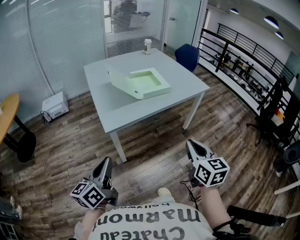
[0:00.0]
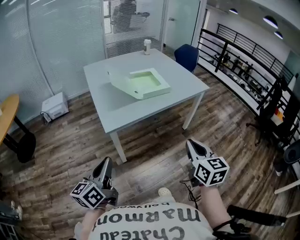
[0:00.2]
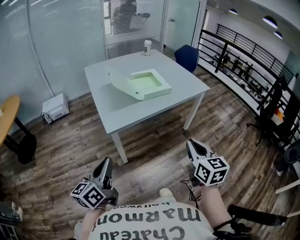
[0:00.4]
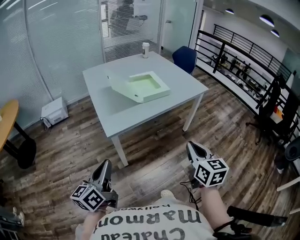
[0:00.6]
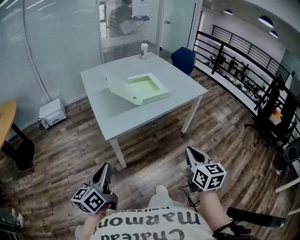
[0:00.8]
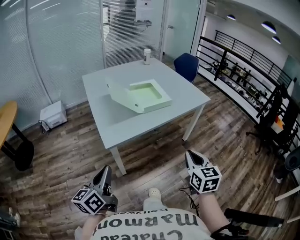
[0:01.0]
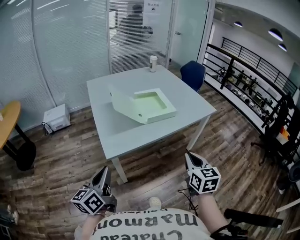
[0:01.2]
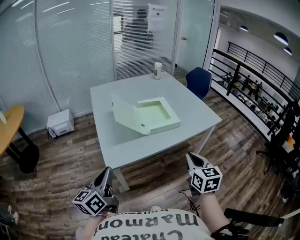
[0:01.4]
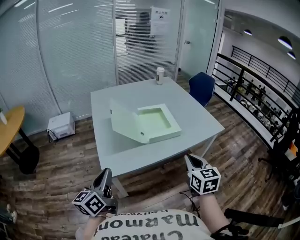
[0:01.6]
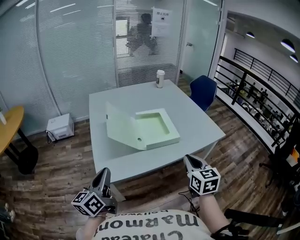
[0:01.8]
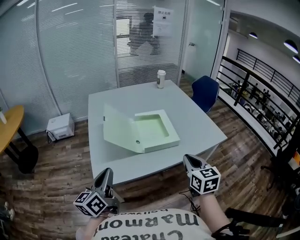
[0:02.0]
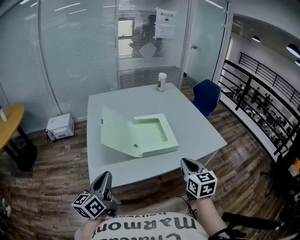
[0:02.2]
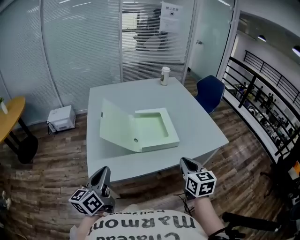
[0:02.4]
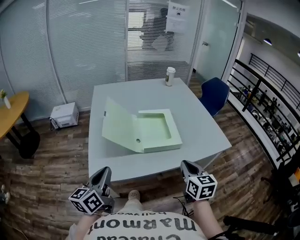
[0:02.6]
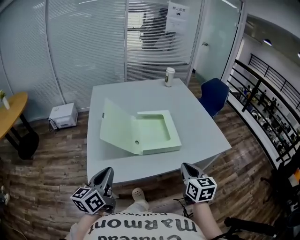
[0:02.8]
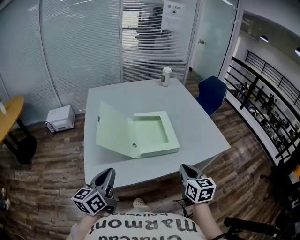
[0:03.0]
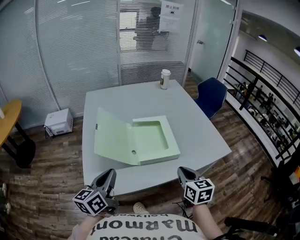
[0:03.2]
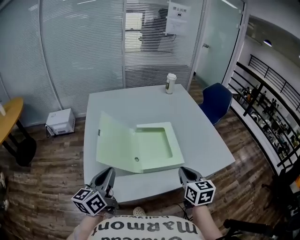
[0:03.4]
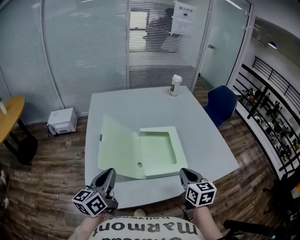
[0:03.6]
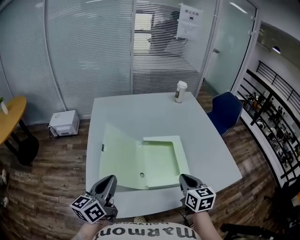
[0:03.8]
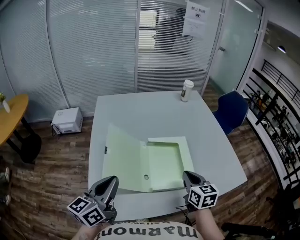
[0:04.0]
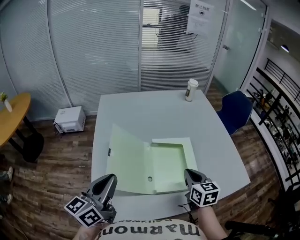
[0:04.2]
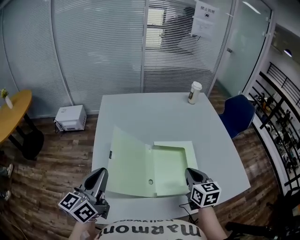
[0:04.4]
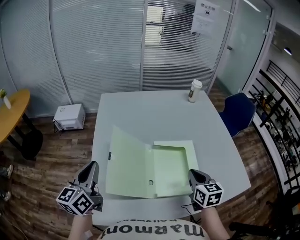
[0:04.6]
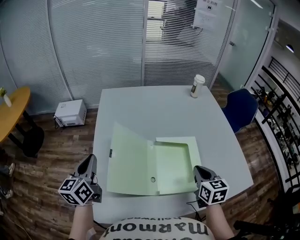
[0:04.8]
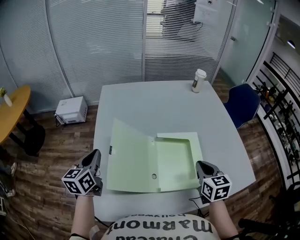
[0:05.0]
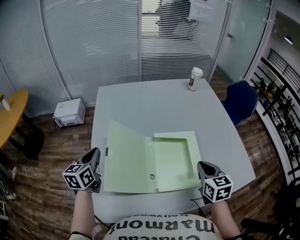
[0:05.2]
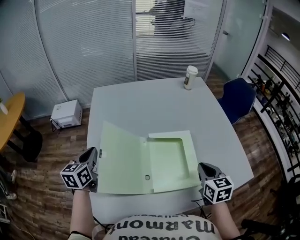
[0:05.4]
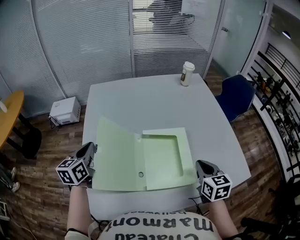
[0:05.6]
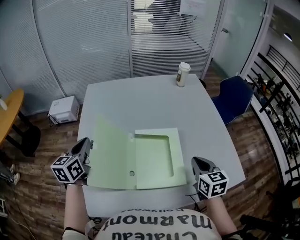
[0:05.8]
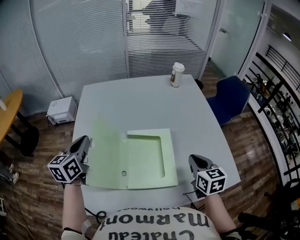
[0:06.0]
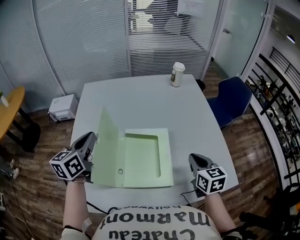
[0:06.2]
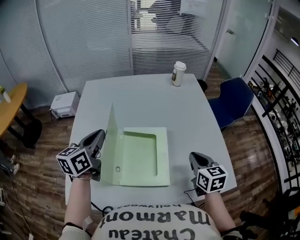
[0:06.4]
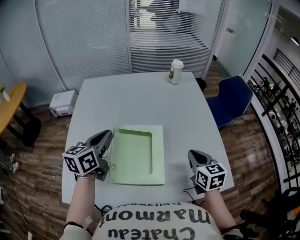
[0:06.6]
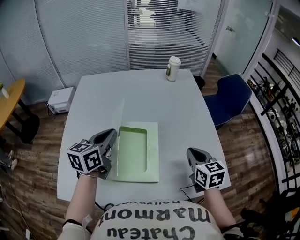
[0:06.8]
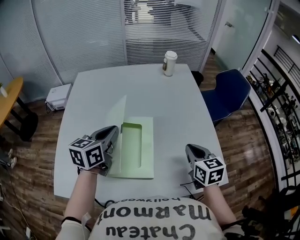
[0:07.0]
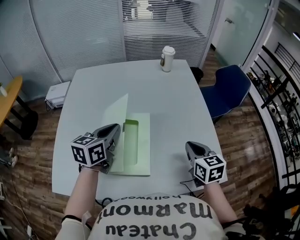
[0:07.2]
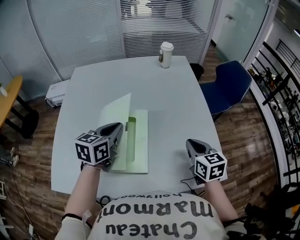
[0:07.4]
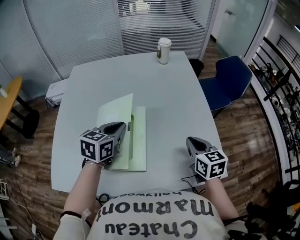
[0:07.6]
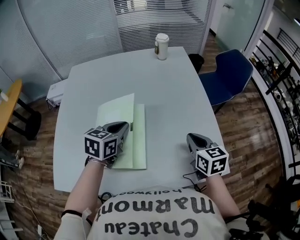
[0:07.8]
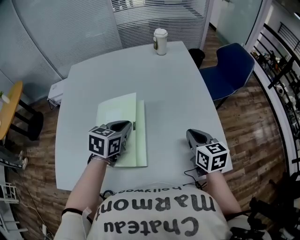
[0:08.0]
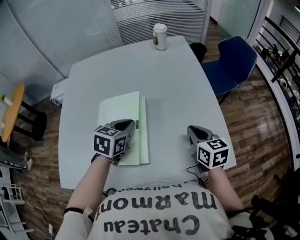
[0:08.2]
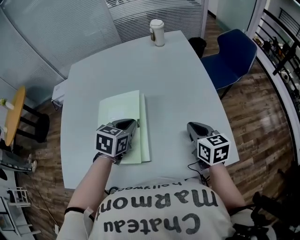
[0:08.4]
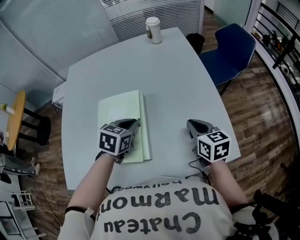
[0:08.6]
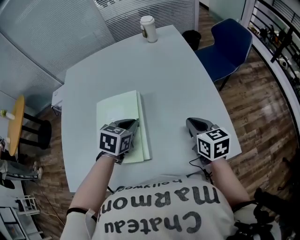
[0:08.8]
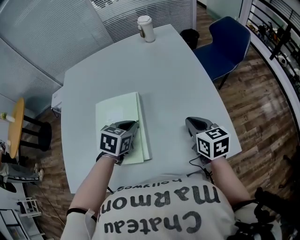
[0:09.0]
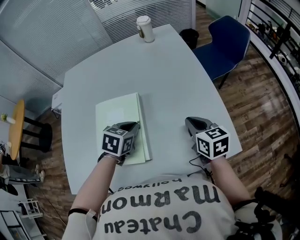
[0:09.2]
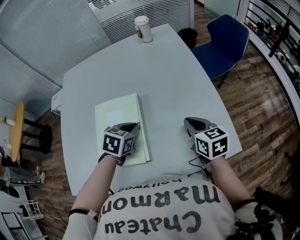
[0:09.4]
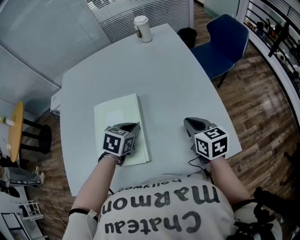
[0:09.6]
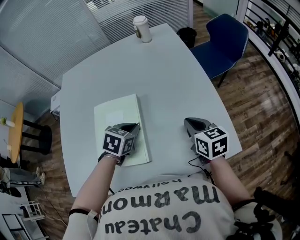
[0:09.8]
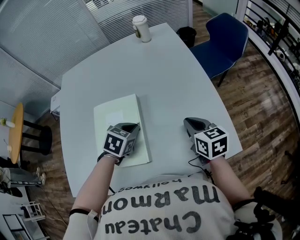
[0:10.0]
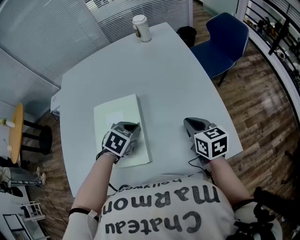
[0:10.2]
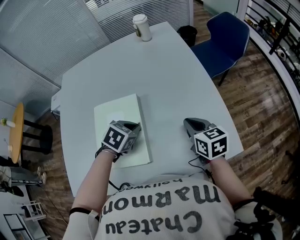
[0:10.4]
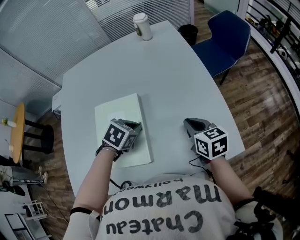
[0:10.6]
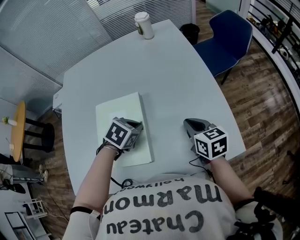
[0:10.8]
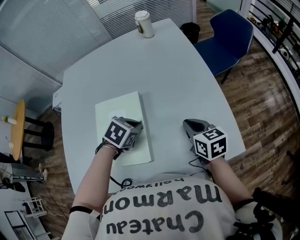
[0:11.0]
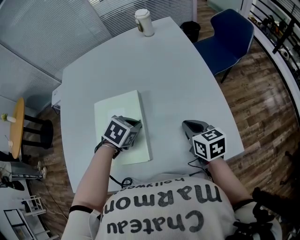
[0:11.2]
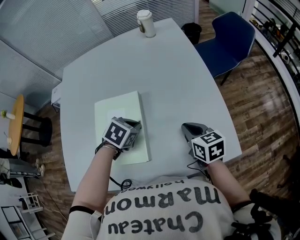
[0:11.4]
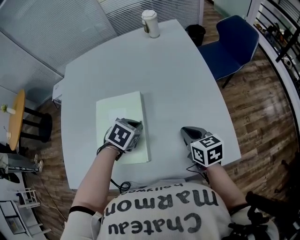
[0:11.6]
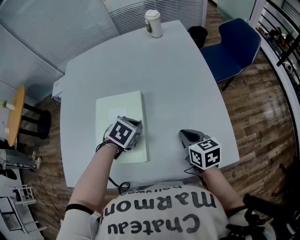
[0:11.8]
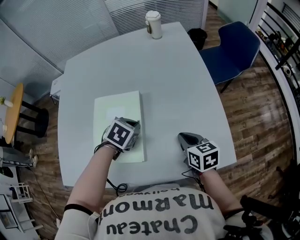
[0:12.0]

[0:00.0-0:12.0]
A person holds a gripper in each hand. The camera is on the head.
0.0 to 1.6 s: Both grippers travel together forward, about 25 cm.
1.6 to 3.0 s: The right gripper is displaced forward and downward by some 15 cm, while the left gripper is displaced forward and to the right by about 15 cm.
3.0 to 4.4 s: The right gripper travels forward by approximately 25 cm. The left gripper is displaced forward, to the left and upward by approximately 20 cm.
4.4 to 6.0 s: The left gripper shifts approximately 15 cm forward and to the right. The right gripper shifts some 15 cm to the right.
6.0 to 7.6 s: The right gripper is displaced to the right by roughly 15 cm, while the left gripper moves to the right, some 30 cm, and changes its angle by approximately 20 degrees.
7.6 to 9.0 s: The left gripper moves downward and to the right, some 10 cm, and swivels roughly 20 degrees.
9.0 to 10.4 s: The grippers stay close to where they were, moving slightly.
10.4 to 12.0 s: The right gripper changes place by about 5 cm.

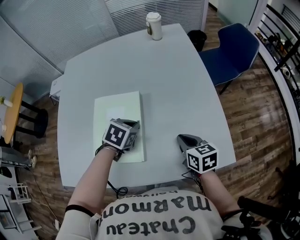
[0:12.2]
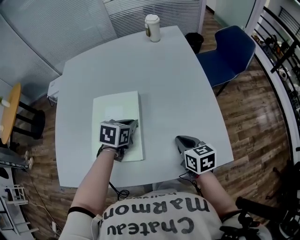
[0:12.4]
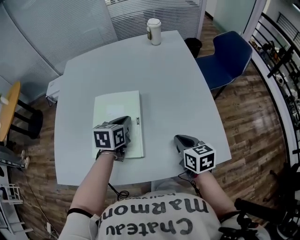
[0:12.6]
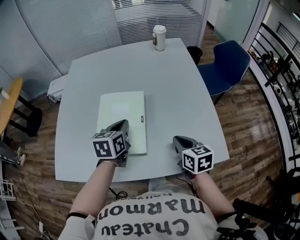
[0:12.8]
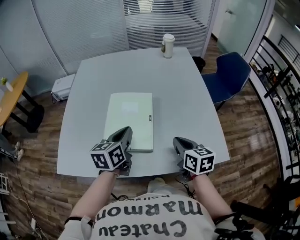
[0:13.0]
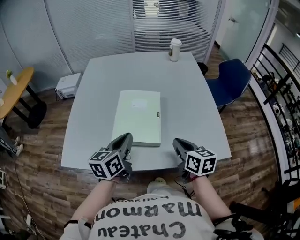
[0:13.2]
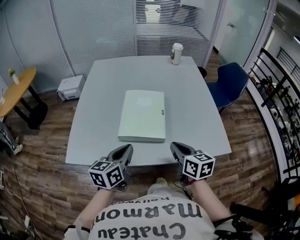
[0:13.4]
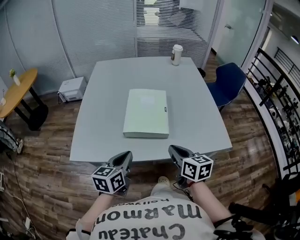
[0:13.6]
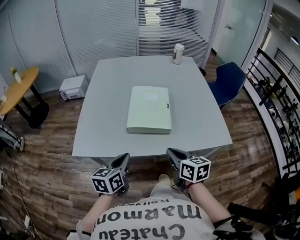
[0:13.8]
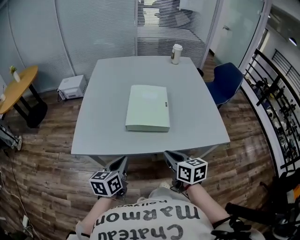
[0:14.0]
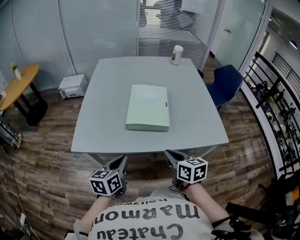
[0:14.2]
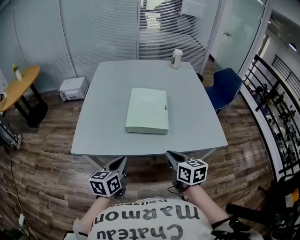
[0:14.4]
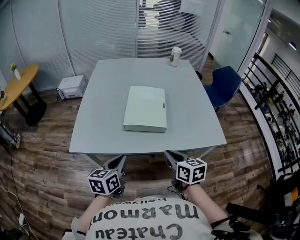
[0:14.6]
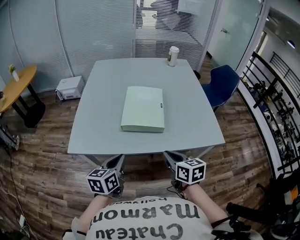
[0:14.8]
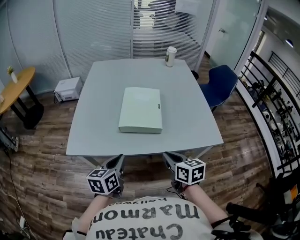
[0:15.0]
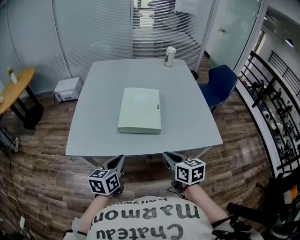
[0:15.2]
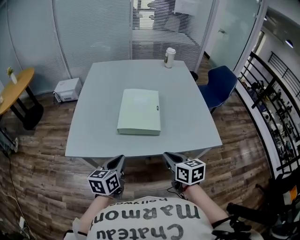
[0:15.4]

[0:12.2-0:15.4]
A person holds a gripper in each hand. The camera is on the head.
12.2 to 13.8 s: The left gripper heads backward and to the left, covering roughly 40 cm, and points its fingers about 40 degrees further upward, while the right gripper heads backward, to the left and upward, covering roughly 30 cm.
13.8 to 15.4 s: The grippers stay close to where they were, moving slightly.

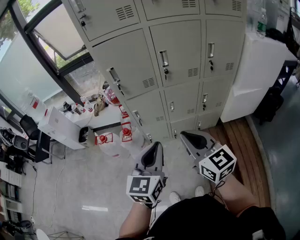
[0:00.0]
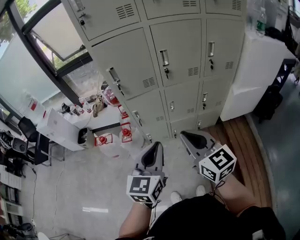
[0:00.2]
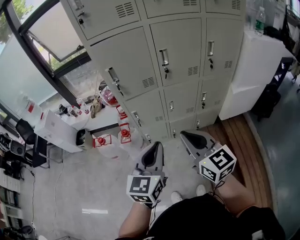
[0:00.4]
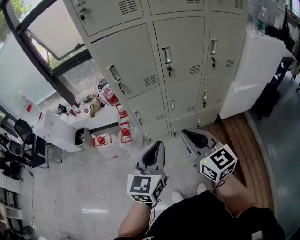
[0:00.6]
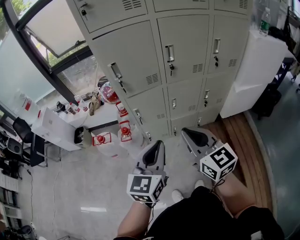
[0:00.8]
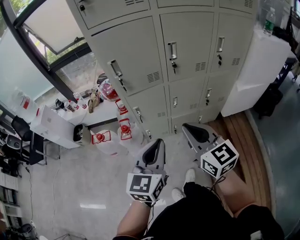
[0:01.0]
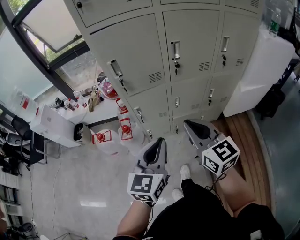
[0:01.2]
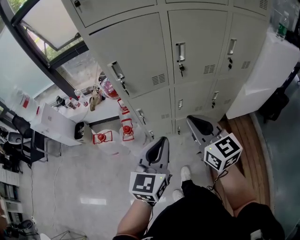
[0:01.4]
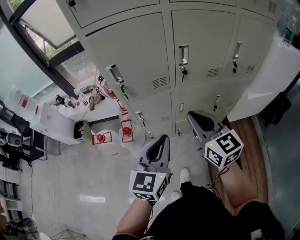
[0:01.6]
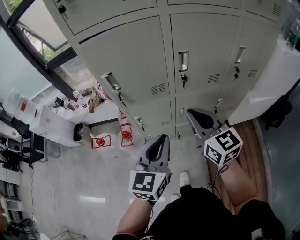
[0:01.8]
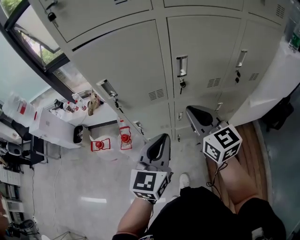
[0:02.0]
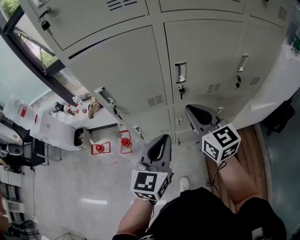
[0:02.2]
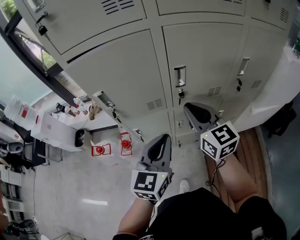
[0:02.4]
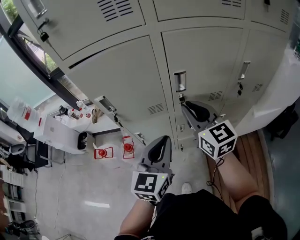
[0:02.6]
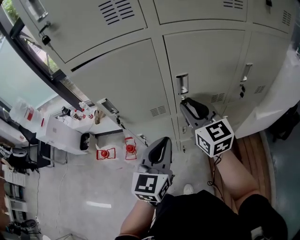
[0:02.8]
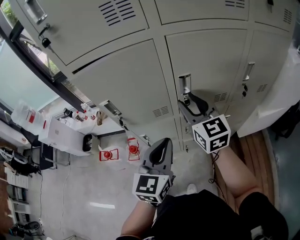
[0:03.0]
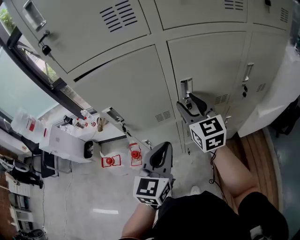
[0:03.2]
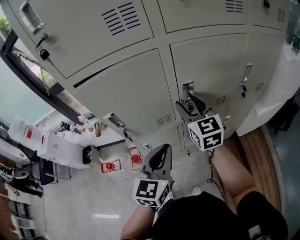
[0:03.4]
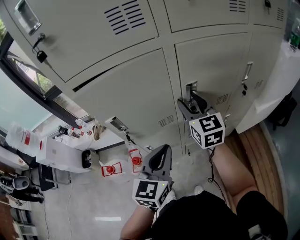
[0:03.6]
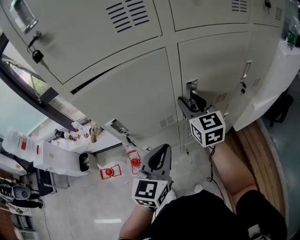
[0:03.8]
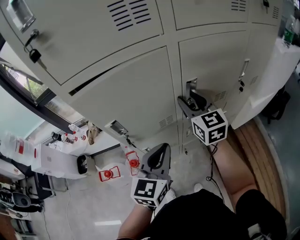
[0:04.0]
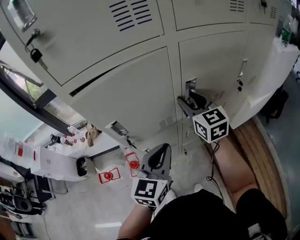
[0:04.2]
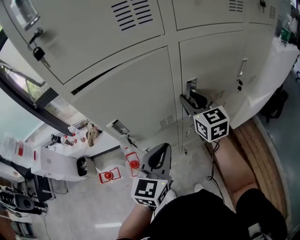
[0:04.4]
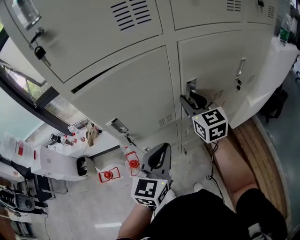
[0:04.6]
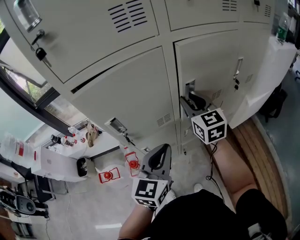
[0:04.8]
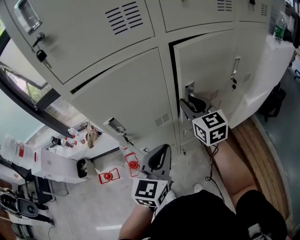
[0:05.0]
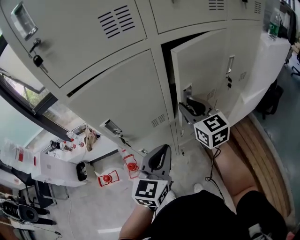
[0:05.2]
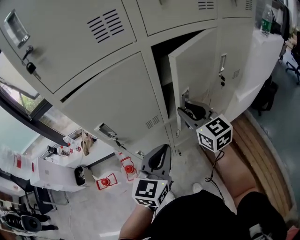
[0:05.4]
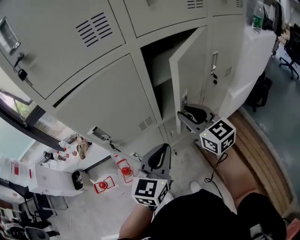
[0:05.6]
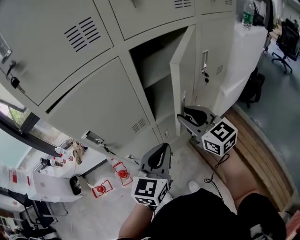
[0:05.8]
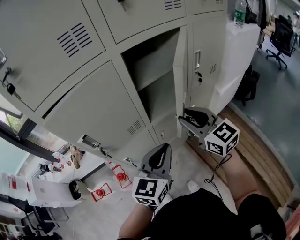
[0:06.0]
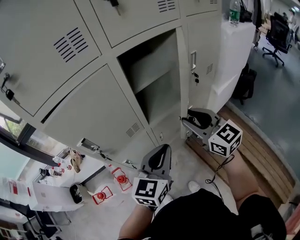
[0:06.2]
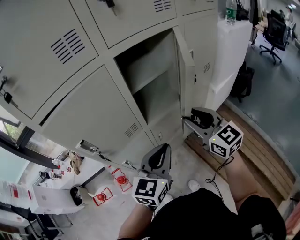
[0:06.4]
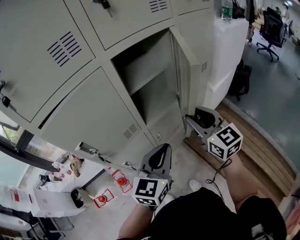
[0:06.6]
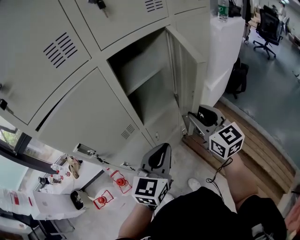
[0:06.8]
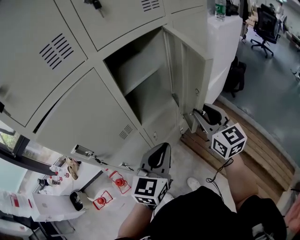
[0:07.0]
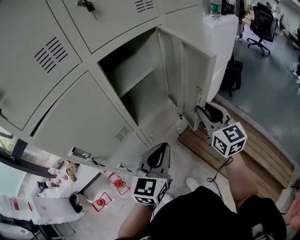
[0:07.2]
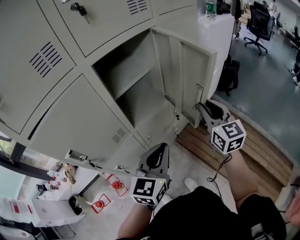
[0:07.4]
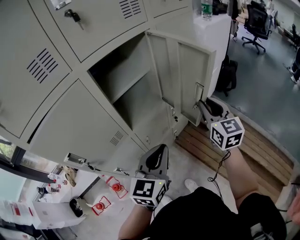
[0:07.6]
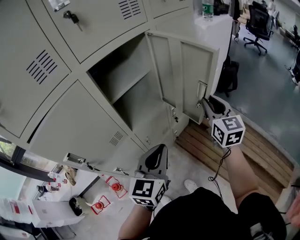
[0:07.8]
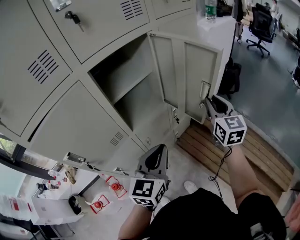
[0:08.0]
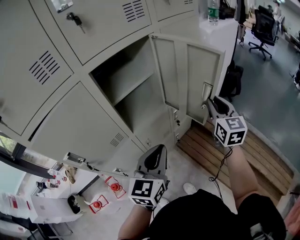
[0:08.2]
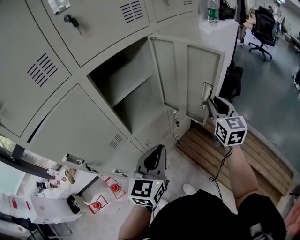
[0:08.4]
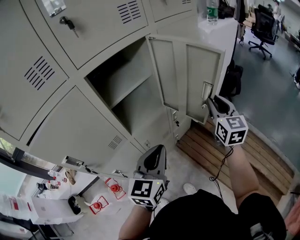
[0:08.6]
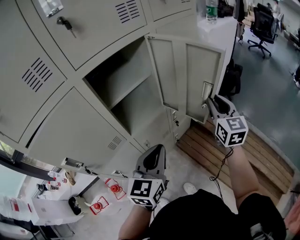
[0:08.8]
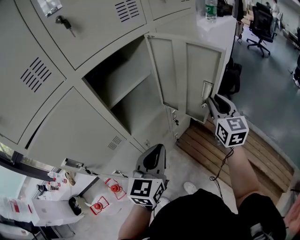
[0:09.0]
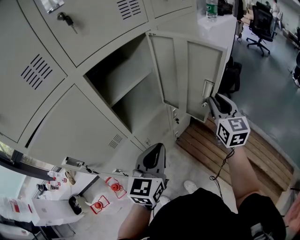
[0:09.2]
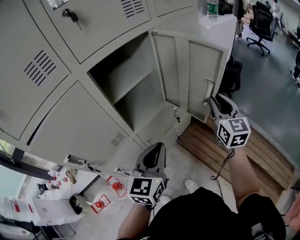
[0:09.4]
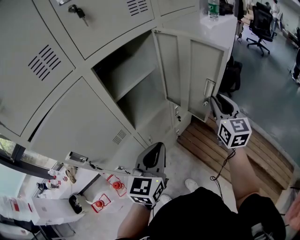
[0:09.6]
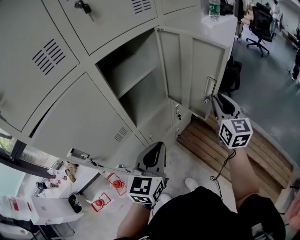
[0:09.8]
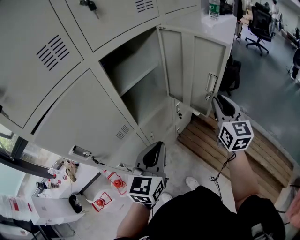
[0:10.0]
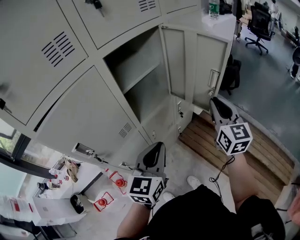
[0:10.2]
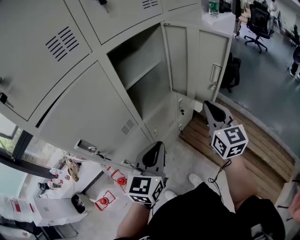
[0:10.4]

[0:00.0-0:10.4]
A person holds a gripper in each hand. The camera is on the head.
0.0 to 1.4 s: The two grippers go roughly 10 cm forward.
1.4 to 3.0 s: Both grippers move forward, roughly 20 cm. The right gripper opens.
3.0 to 4.4 s: The left gripper travels to the left by some 5 cm. The right gripper heads forward, covering about 5 cm.
4.4 to 6.0 s: The right gripper is displaced backward and to the right by approximately 15 cm; the left gripper shifts roughly 10 cm to the right.
6.0 to 7.4 s: The right gripper goes about 15 cm to the right, and turns by approximately 30 degrees.
7.4 to 9.0 s: The right gripper goes about 10 cm to the right and forward.
9.0 to 10.4 s: The left gripper shifts some 10 cm backward and to the left. Meanwhile the right gripper is displaced backward and to the left by approximately 15 cm.
